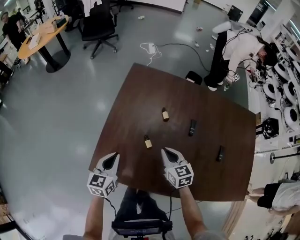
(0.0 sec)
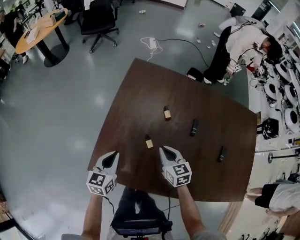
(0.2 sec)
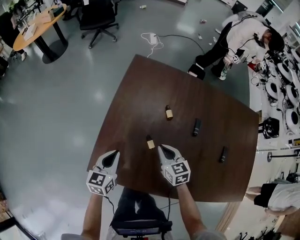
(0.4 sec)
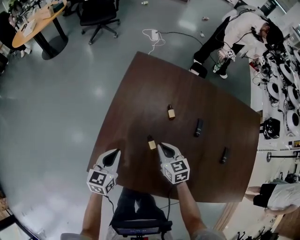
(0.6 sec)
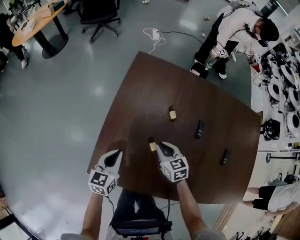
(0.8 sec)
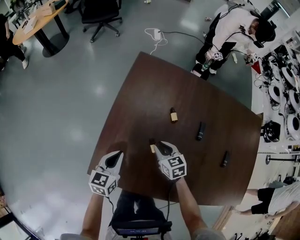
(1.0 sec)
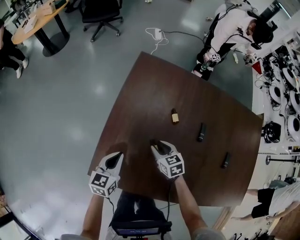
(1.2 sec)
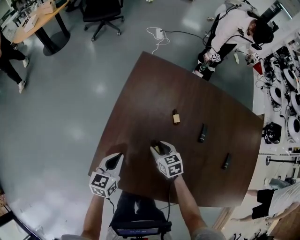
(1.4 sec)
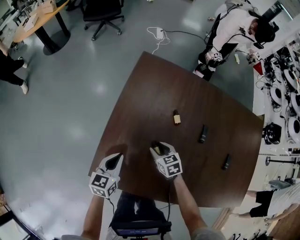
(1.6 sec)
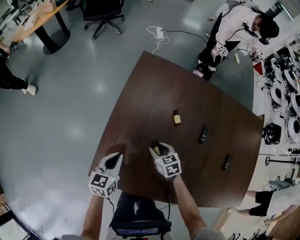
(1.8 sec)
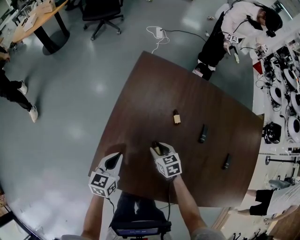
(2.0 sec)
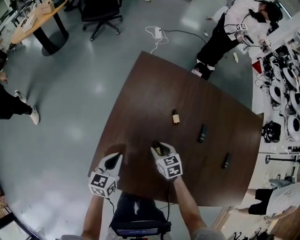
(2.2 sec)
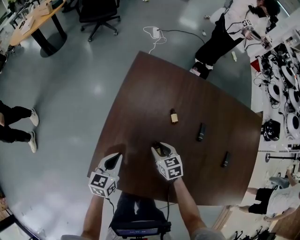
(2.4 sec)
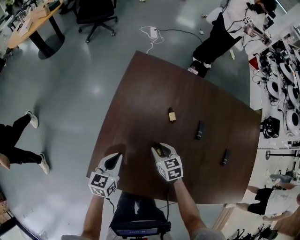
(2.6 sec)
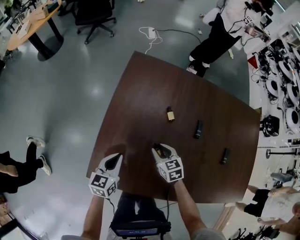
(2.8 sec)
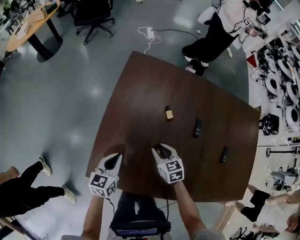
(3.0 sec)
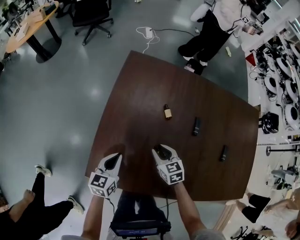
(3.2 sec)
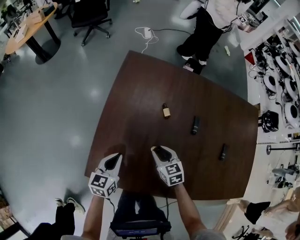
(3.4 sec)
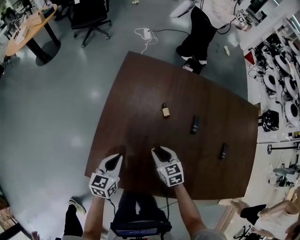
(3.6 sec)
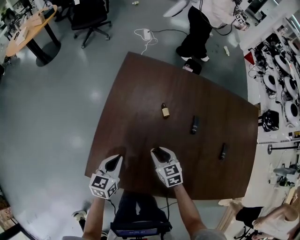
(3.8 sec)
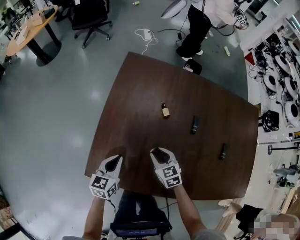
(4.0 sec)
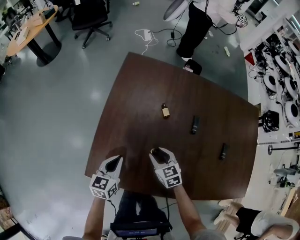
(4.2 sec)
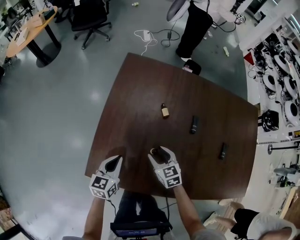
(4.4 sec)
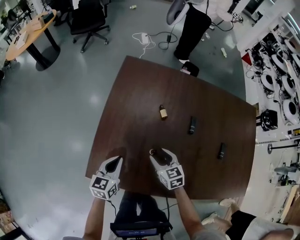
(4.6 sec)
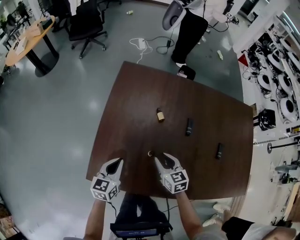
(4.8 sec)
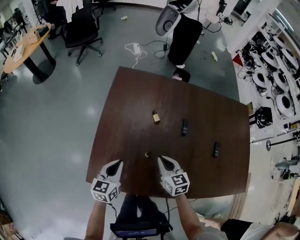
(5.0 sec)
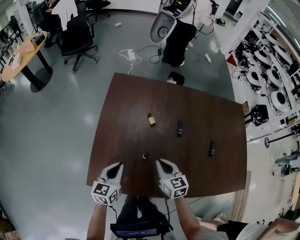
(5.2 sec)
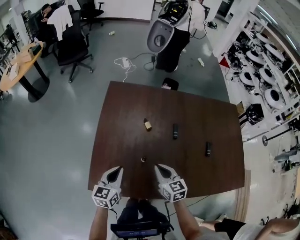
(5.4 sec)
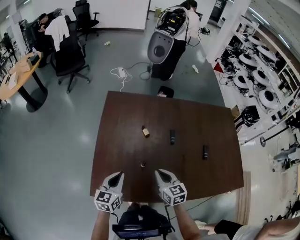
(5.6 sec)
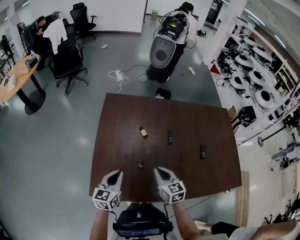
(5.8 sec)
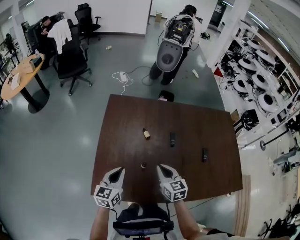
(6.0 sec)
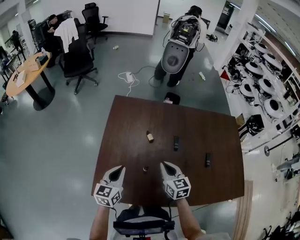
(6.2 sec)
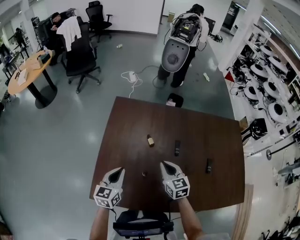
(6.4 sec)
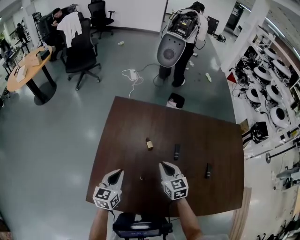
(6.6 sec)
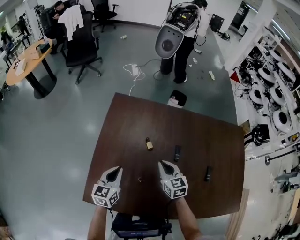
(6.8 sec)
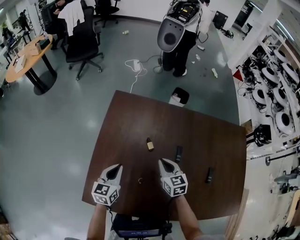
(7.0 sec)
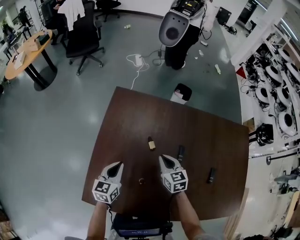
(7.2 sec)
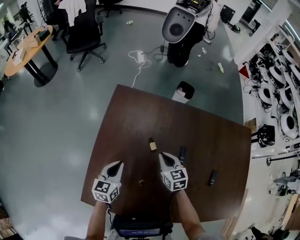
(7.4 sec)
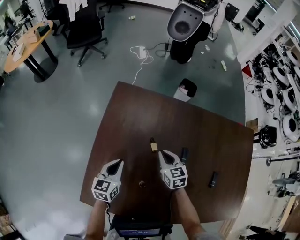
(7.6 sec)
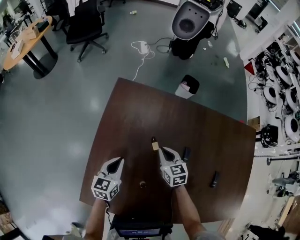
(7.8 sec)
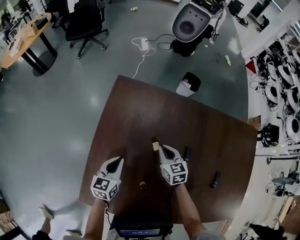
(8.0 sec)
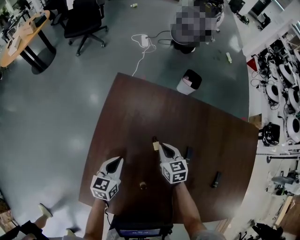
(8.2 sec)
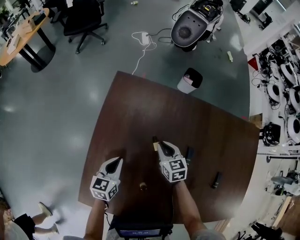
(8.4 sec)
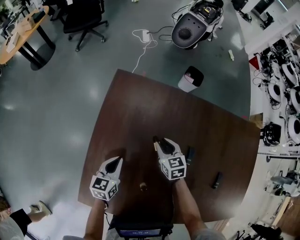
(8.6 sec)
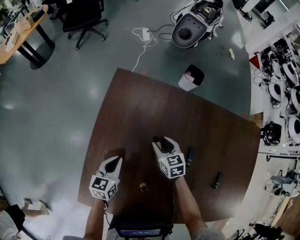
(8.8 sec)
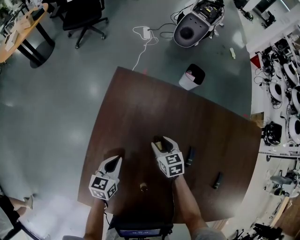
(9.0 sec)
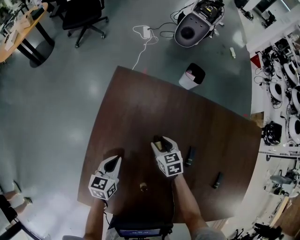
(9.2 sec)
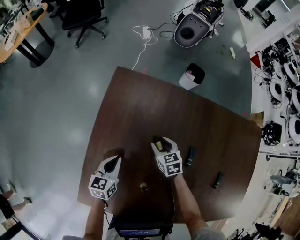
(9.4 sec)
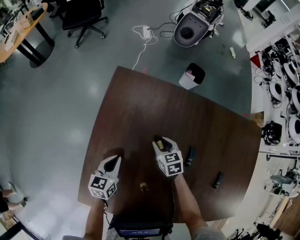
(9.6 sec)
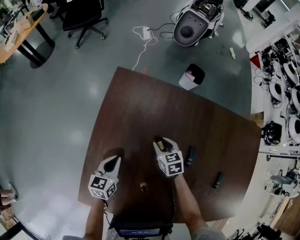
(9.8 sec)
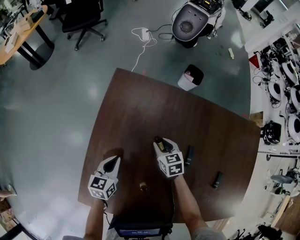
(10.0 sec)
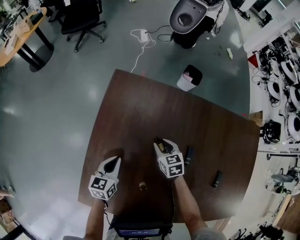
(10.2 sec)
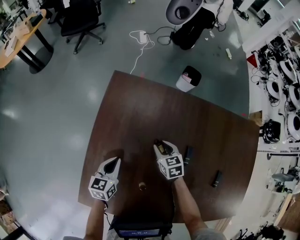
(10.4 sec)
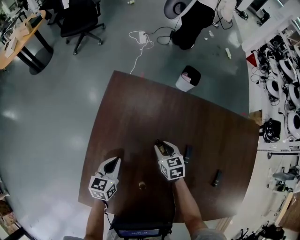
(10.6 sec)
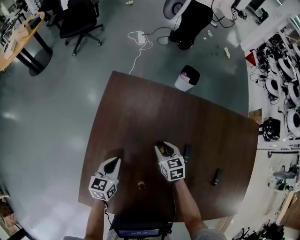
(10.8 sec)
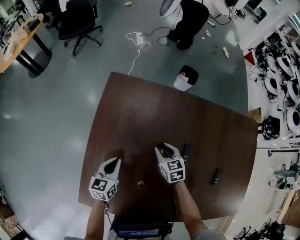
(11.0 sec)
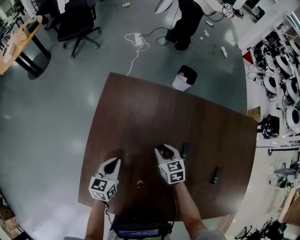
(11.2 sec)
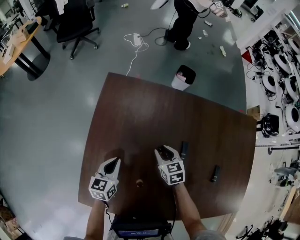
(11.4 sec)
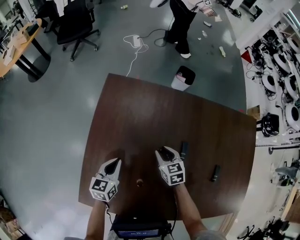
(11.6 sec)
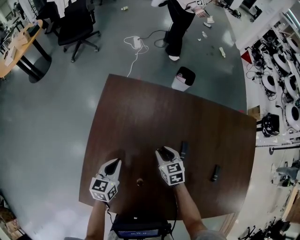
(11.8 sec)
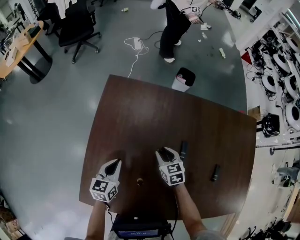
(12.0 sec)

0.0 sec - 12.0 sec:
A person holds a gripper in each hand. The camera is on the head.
0.0 sec - 1.6 sec: The right gripper heads downward, to the left and forward, covering about 15 cm, rotates some 20 degrees, and opens; the left gripper goes some 5 cm downward.
1.6 sec - 3.0 sec: The right gripper shifts by about 5 cm.
3.0 sec - 4.4 sec: The right gripper opens.
4.4 sec - 6.0 sec: The right gripper shifts approximately 15 cm upward and to the right, changes its angle by roughly 20 degrees, and closes its fingers; the left gripper goes some 10 cm upward.
6.0 sec - 7.6 sec: The two grippers go roughly 20 cm forward and downward.
7.6 sec - 9.0 sec: The left gripper is displaced downward by about 5 cm. The right gripper is displaced downward by some 10 cm, and opens.
9.0 sec - 10.4 sec: The grippers make only small movements.
10.4 sec - 12.0 sec: The right gripper heads backward, covering some 5 cm.

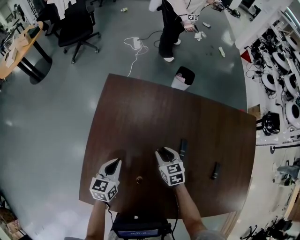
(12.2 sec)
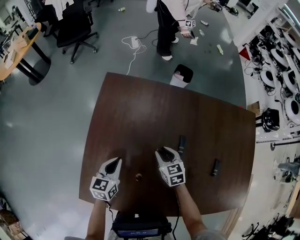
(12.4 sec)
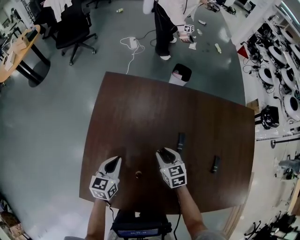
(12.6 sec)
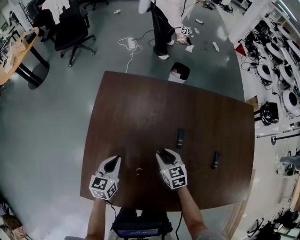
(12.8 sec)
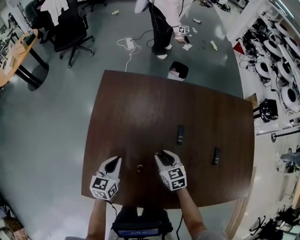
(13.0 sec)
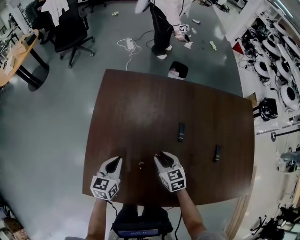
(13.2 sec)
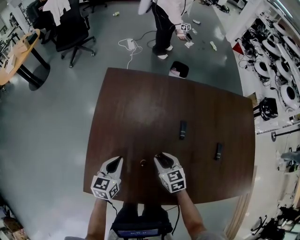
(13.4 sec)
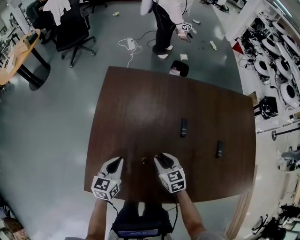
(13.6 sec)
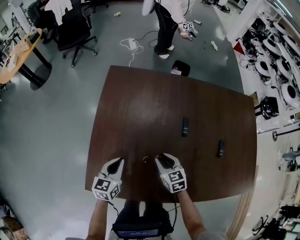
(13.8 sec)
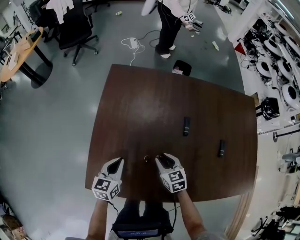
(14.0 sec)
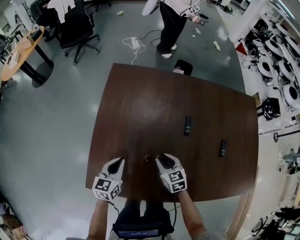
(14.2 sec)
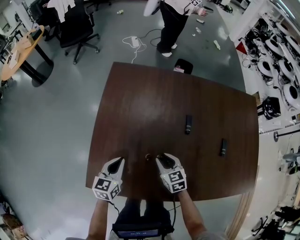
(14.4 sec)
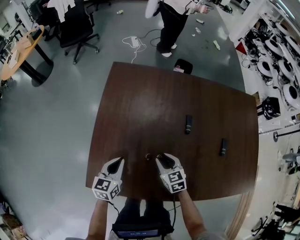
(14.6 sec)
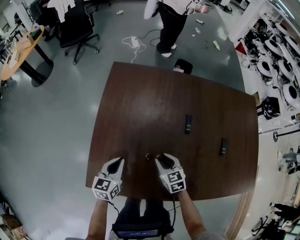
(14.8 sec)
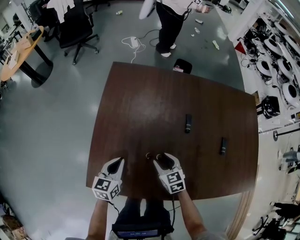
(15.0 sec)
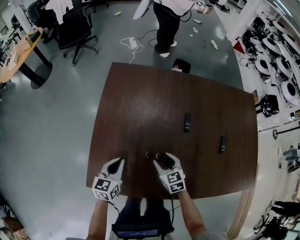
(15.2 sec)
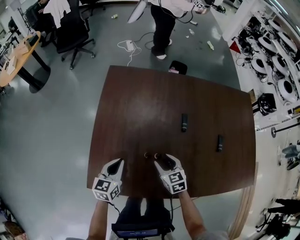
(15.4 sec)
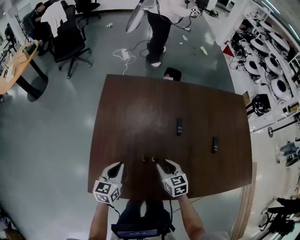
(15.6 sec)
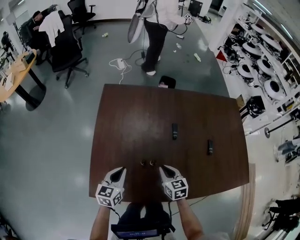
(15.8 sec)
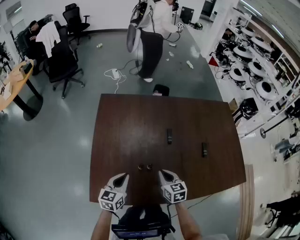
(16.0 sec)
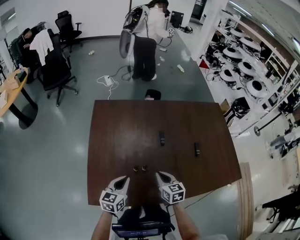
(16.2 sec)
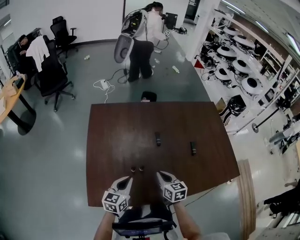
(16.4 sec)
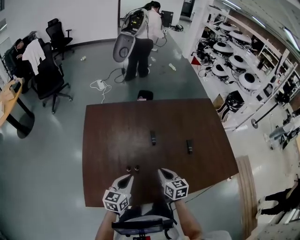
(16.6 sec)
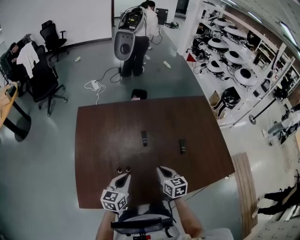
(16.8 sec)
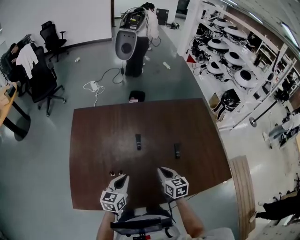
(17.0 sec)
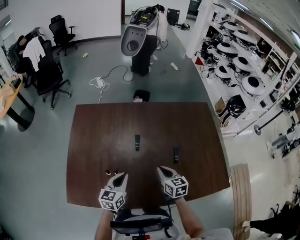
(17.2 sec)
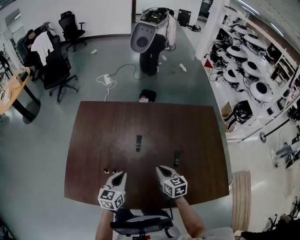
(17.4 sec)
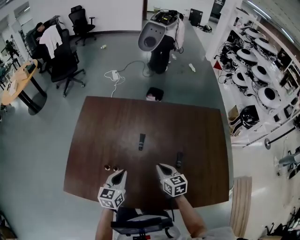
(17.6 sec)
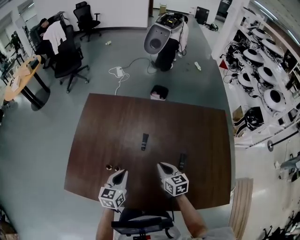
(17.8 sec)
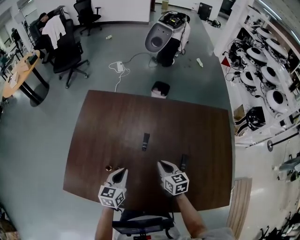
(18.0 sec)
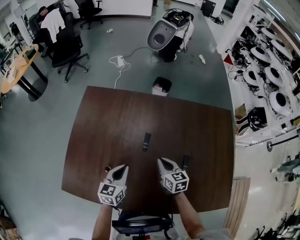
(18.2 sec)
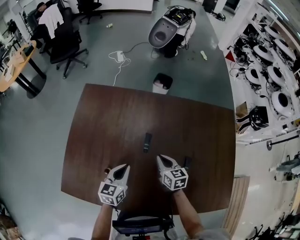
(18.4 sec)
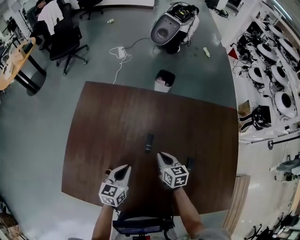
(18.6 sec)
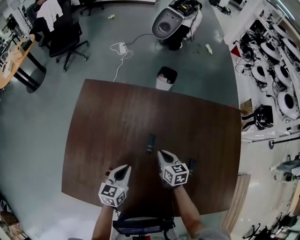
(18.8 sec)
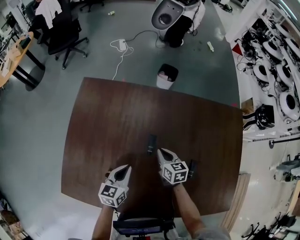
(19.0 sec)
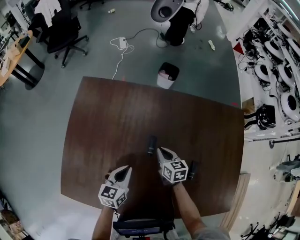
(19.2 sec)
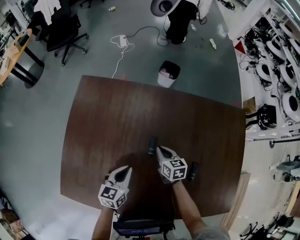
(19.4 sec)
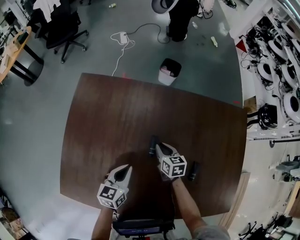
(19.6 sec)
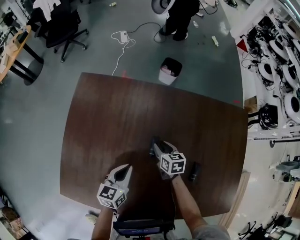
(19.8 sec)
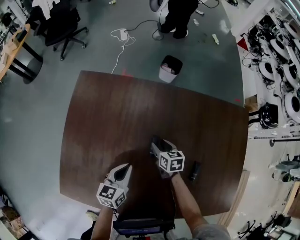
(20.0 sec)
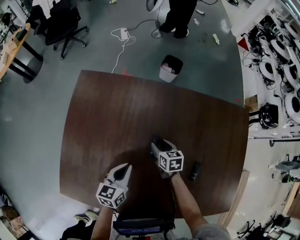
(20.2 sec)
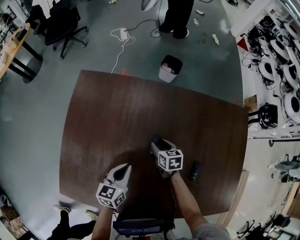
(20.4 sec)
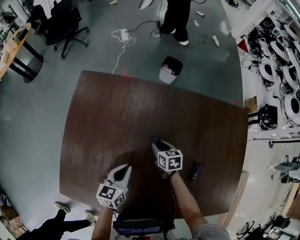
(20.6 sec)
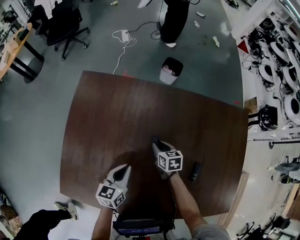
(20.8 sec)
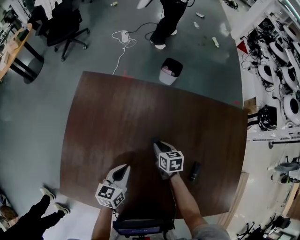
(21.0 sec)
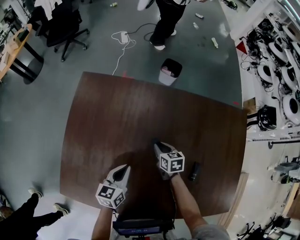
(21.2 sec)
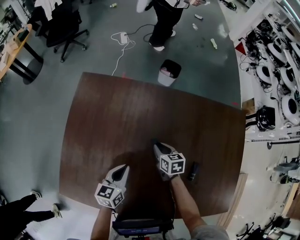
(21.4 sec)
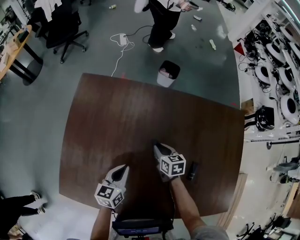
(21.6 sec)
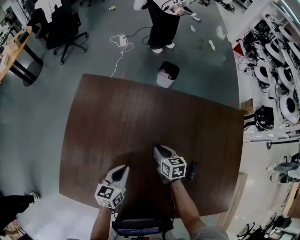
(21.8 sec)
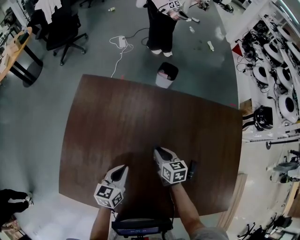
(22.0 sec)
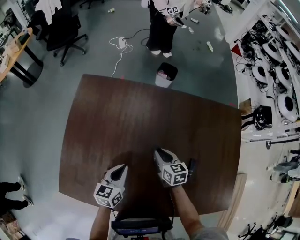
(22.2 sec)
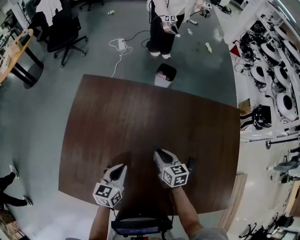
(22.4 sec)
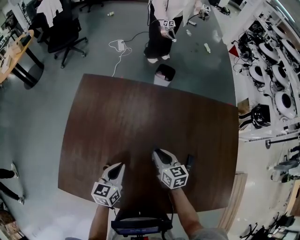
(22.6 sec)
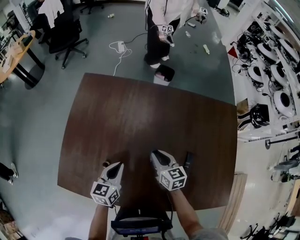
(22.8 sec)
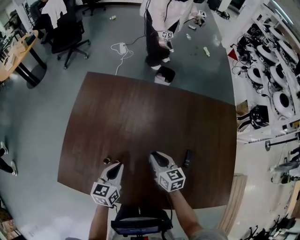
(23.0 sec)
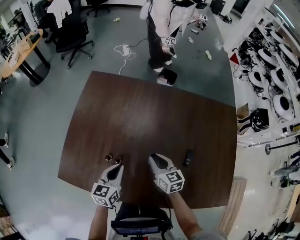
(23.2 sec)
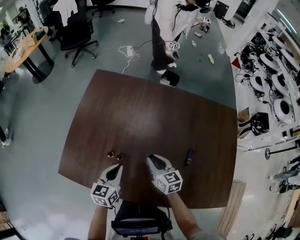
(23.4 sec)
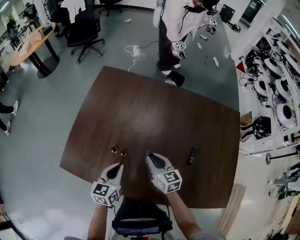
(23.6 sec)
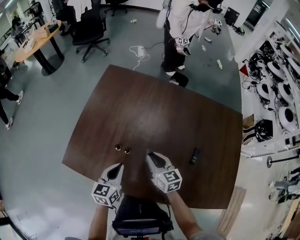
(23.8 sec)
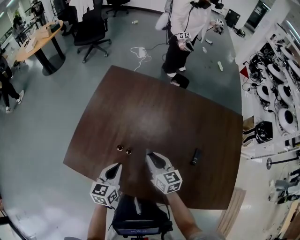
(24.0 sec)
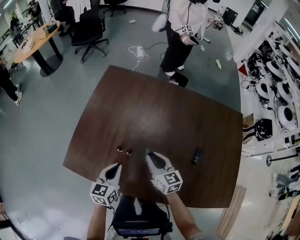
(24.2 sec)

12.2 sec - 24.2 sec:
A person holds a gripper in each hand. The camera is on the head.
12.2 sec - 13.8 sec: The right gripper goes about 15 cm backward, while the left gripper travels backward by some 10 cm.
13.8 sec - 15.2 sec: The right gripper opens.
15.2 sec - 16.6 sec: The right gripper heads upward and to the right, covering roughly 15 cm, rotates about 30 degrees, and closes. Meanwhile the left gripper travels to the right and upward by some 15 cm.
16.6 sec - 18.2 sec: The grippers both shift forward and to the right by approximately 15 cm.
18.2 sec - 19.8 sec: The right gripper moves forward and downward, some 15 cm, and opens up, while the left gripper goes about 5 cm forward.
19.8 sec - 21.2 sec: The grippers move only a little.
21.2 sec - 22.6 sec: The right gripper travels upward and backward by roughly 10 cm.
22.6 sec - 24.2 sec: The left gripper shifts some 15 cm backward and to the left; the right gripper travels to the left and backward by some 15 cm.
